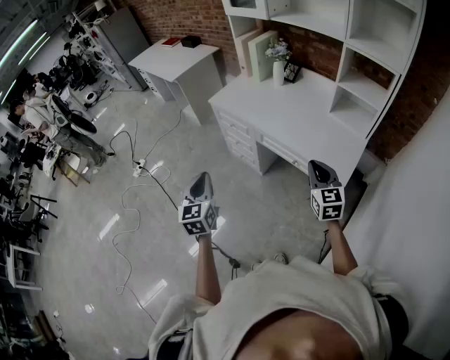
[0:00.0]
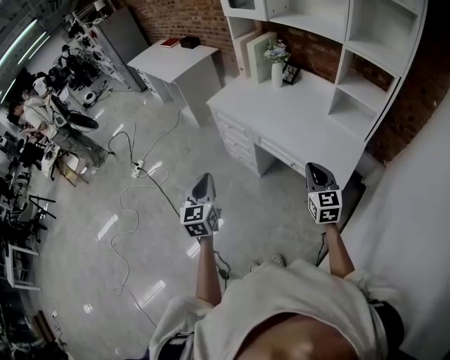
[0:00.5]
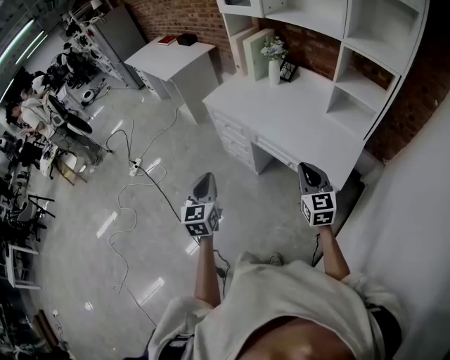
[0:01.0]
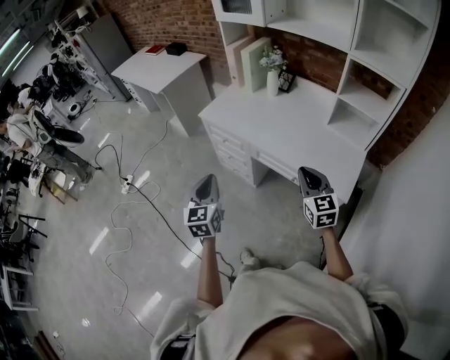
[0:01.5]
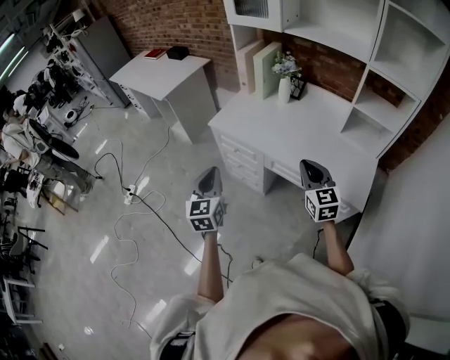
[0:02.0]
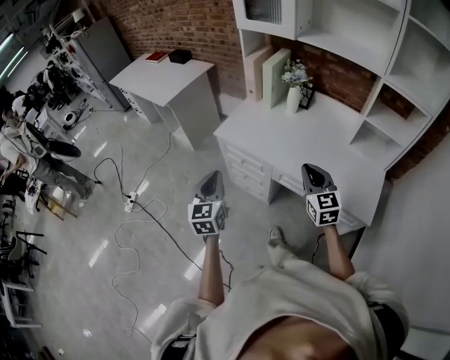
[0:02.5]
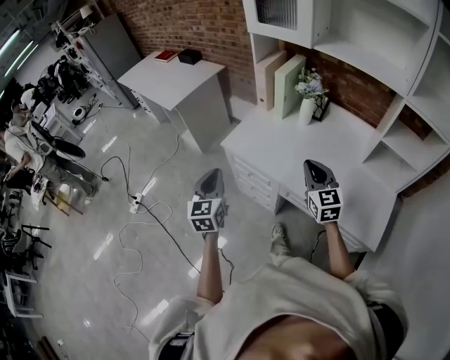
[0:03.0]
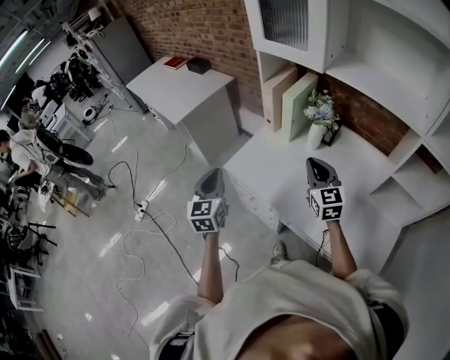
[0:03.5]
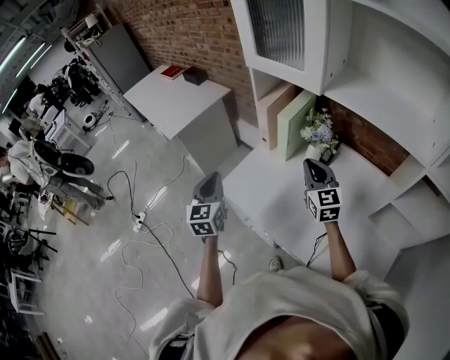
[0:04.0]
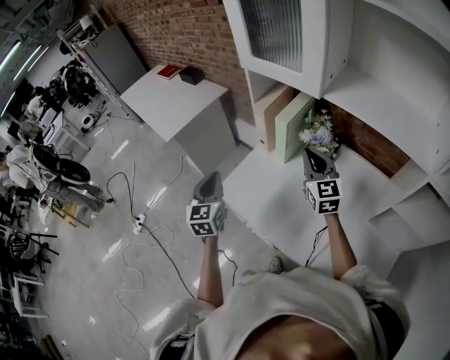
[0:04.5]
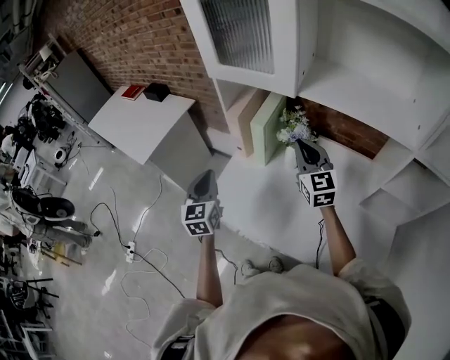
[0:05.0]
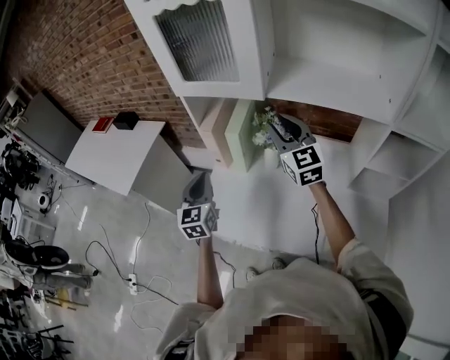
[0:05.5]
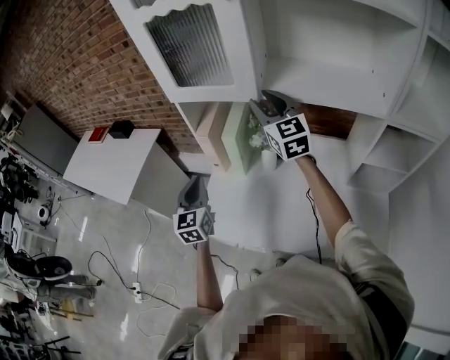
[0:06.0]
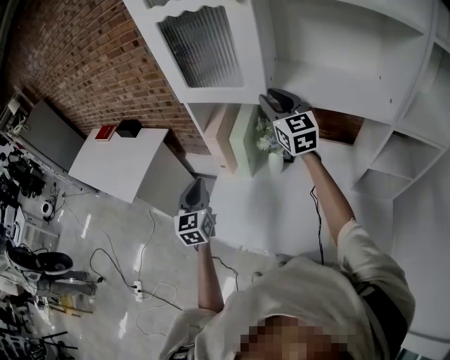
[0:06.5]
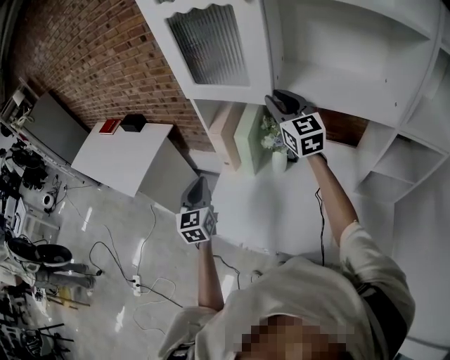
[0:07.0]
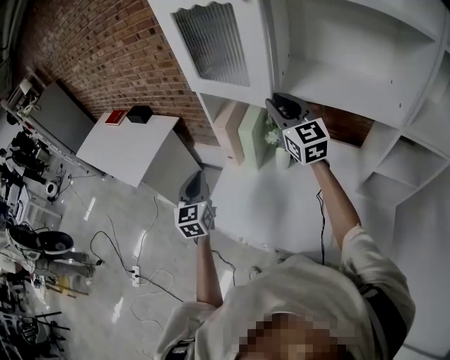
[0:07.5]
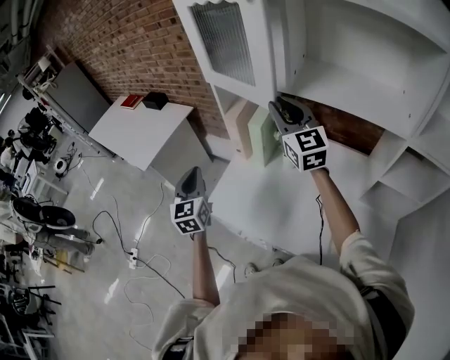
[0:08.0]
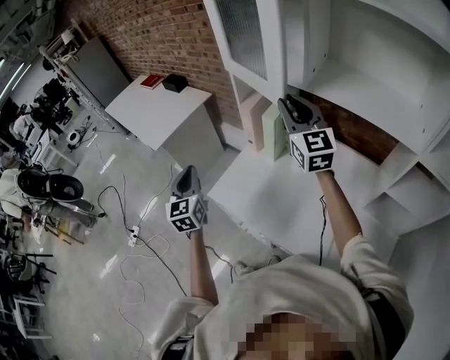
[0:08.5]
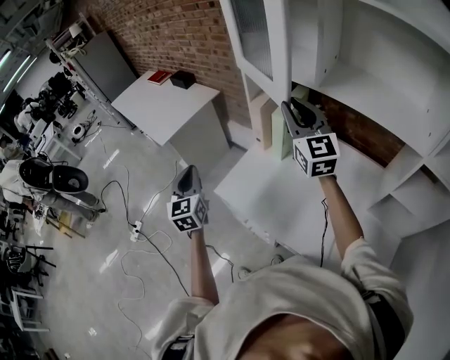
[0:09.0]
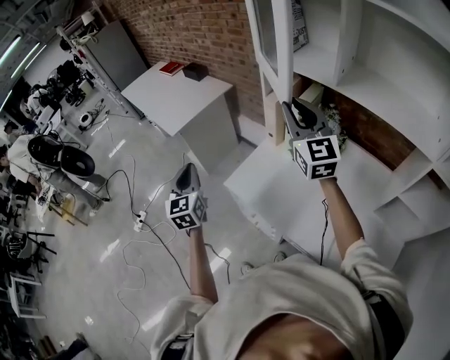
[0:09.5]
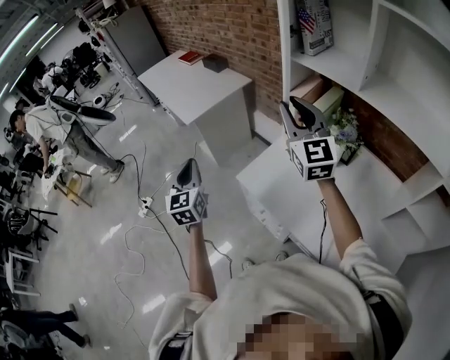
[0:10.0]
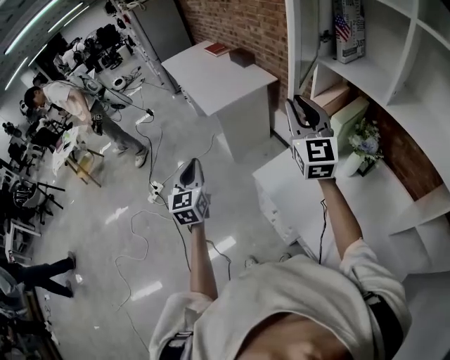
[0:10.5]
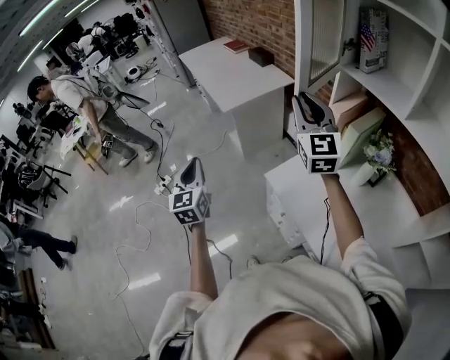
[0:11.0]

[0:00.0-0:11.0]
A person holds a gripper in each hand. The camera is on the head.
0:00.0 to 0:02.0: The left gripper is displaced forward by approximately 20 cm. Meanwhile the right gripper shifts some 20 cm forward and to the left.
0:02.0 to 0:03.5: The grippers both shift forward by about 30 cm.
0:03.5 to 0:05.5: The right gripper is displaced forward and upward by some 20 cm, and opens its fingers; the left gripper travels forward and to the right by about 25 cm, and turns by roughly 20 degrees.
0:05.5 to 0:07.5: The left gripper changes place by approximately 5 cm; the right gripper moves upward, approximately 5 cm.
0:07.5 to 0:09.0: The right gripper is displaced to the left by roughly 5 cm. The left gripper goes roughly 15 cm to the left and backward, and rotates some 20 degrees.
0:09.0 to 0:11.0: Both grippers move to the left, about 20 cm.

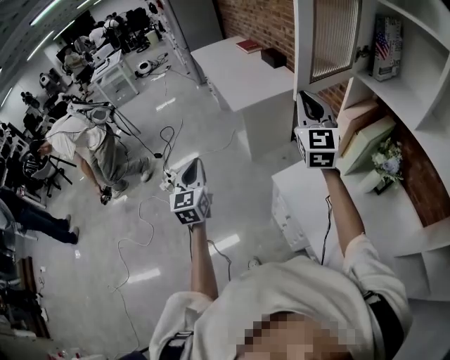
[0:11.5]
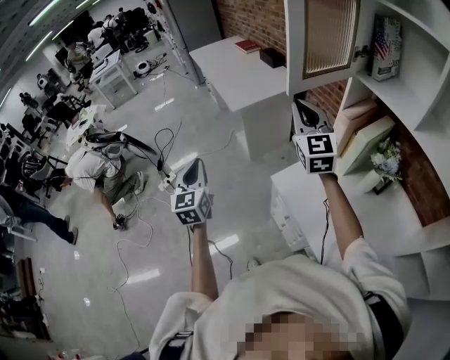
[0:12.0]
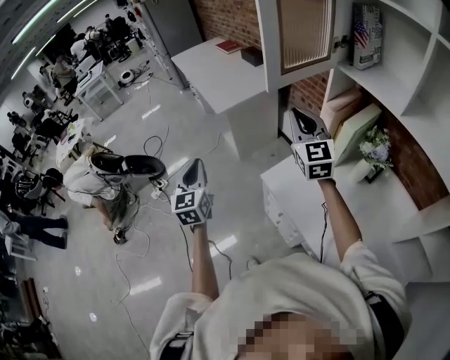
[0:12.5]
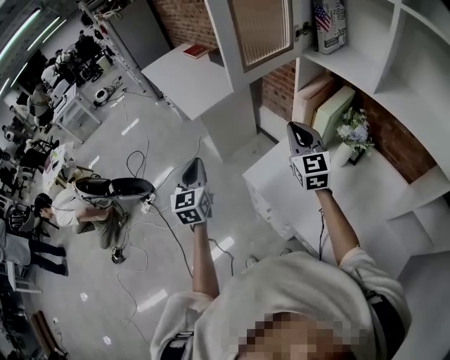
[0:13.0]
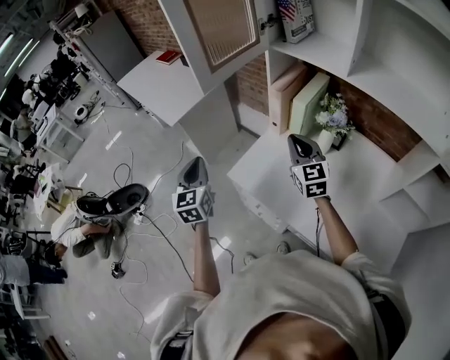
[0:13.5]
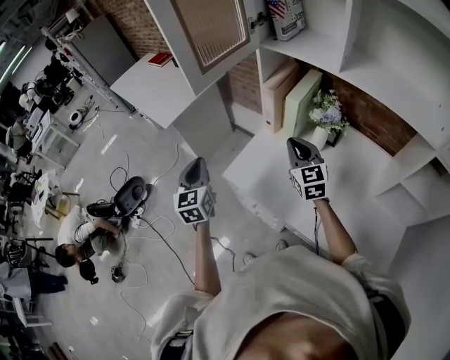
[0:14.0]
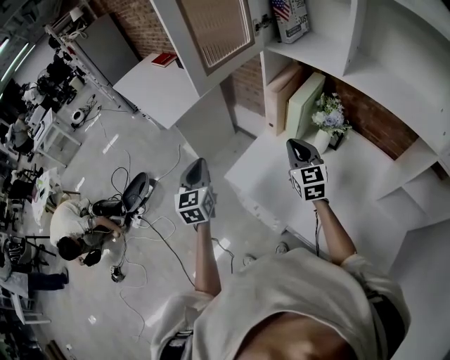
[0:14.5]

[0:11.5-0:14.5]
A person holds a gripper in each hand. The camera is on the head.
0:11.5 to 0:13.0: The right gripper goes some 15 cm downward, to the right and backward; the left gripper goes approximately 10 cm to the right.
0:13.0 to 0:14.5: The right gripper heads to the right and downward, covering roughly 10 cm; the left gripper heads to the right, covering about 10 cm.

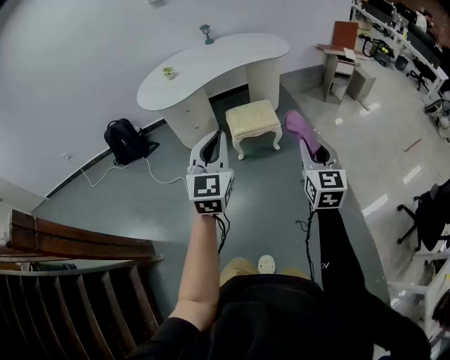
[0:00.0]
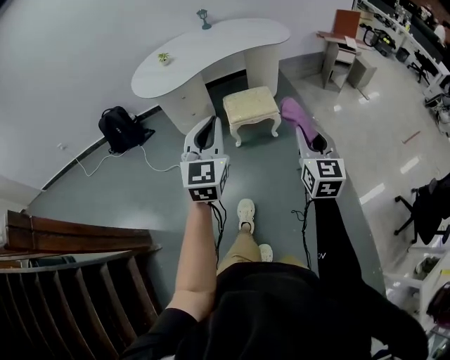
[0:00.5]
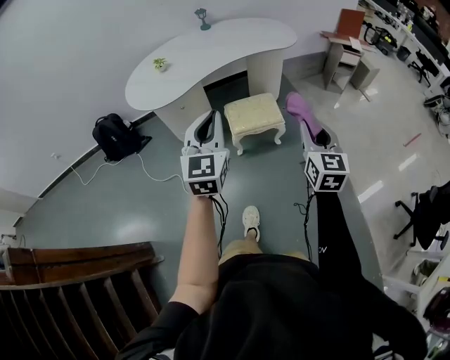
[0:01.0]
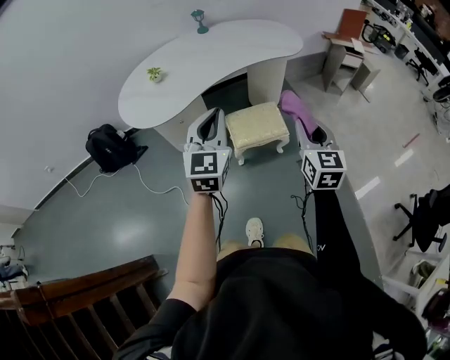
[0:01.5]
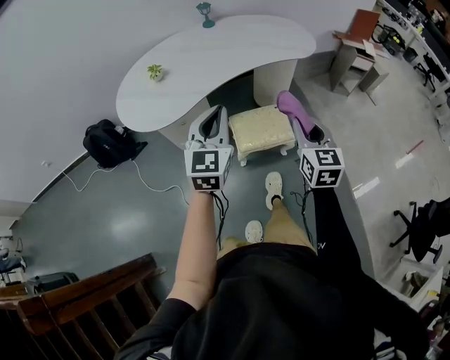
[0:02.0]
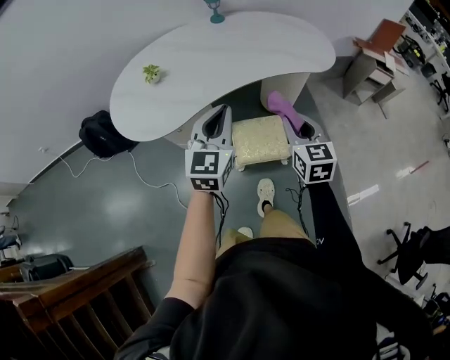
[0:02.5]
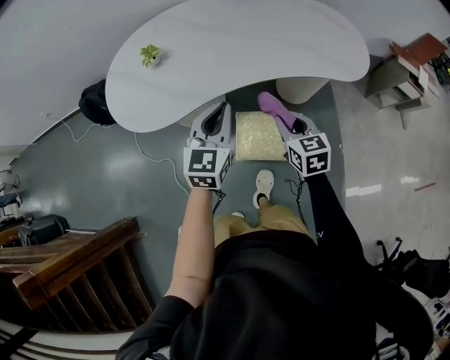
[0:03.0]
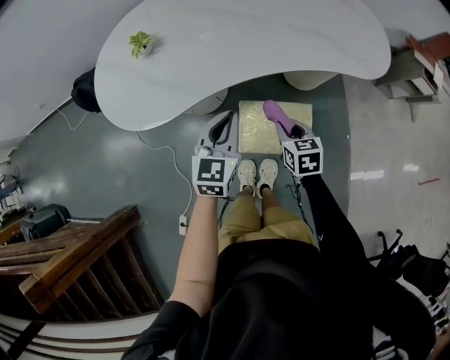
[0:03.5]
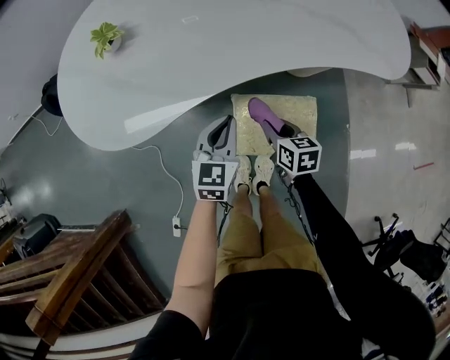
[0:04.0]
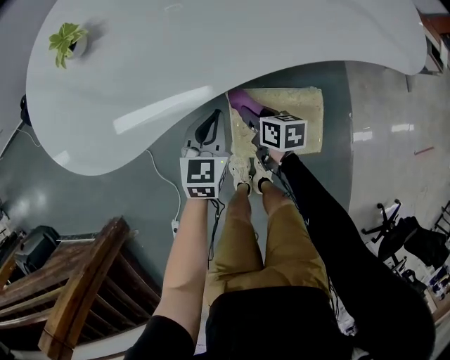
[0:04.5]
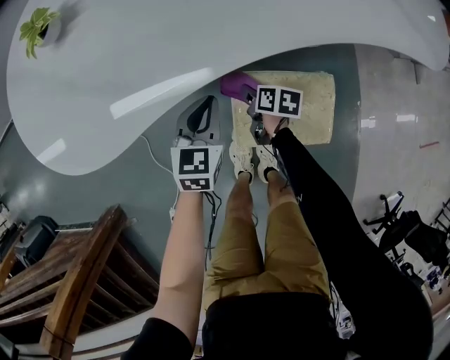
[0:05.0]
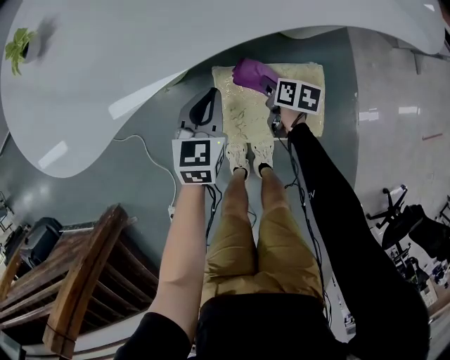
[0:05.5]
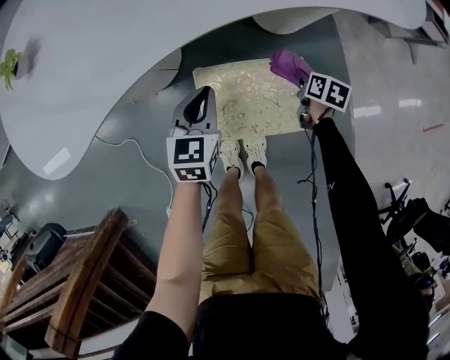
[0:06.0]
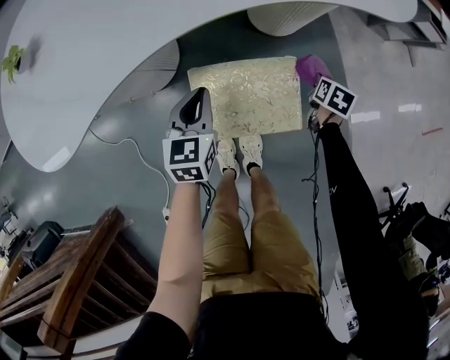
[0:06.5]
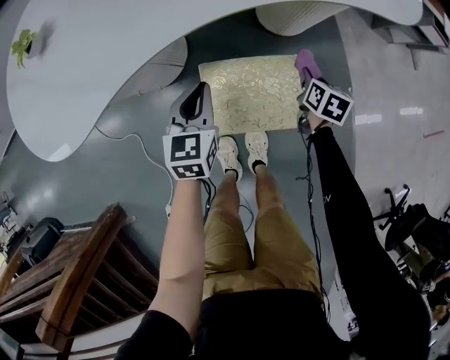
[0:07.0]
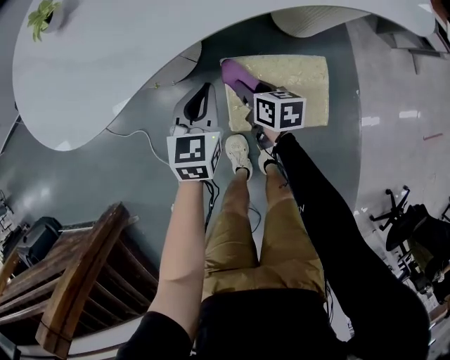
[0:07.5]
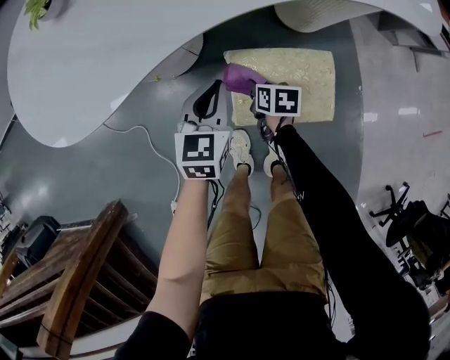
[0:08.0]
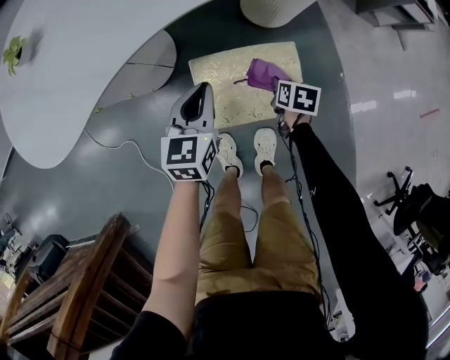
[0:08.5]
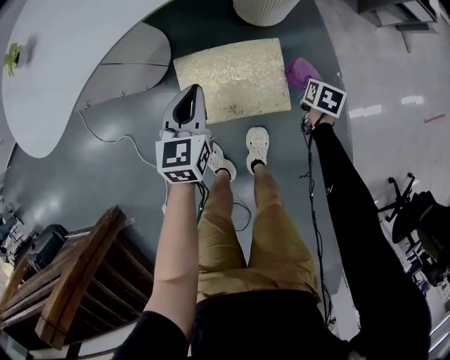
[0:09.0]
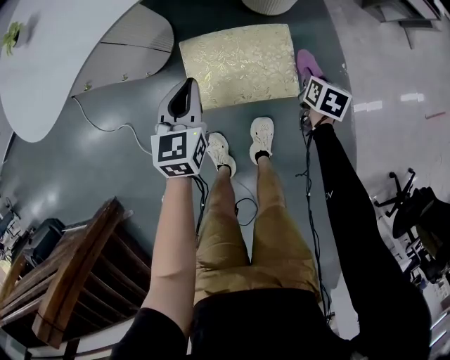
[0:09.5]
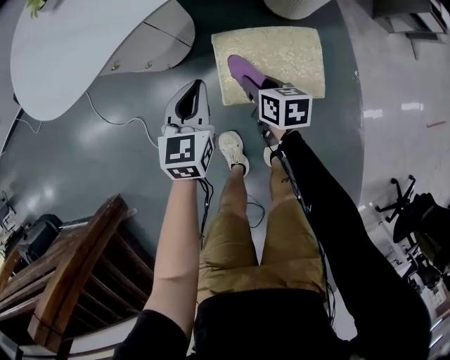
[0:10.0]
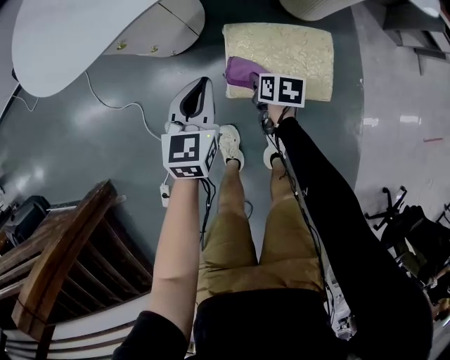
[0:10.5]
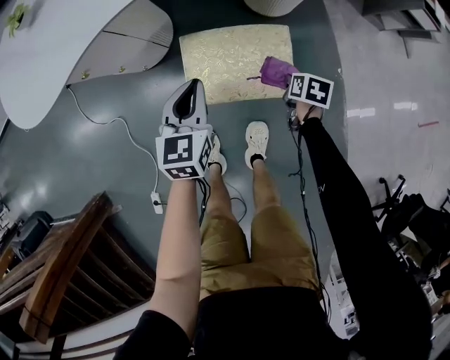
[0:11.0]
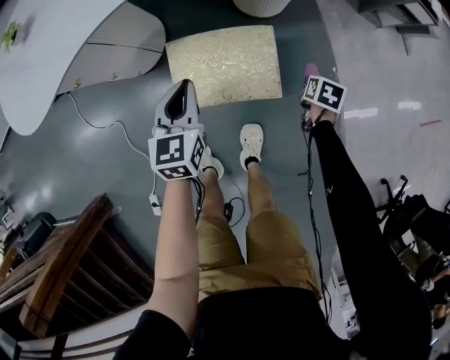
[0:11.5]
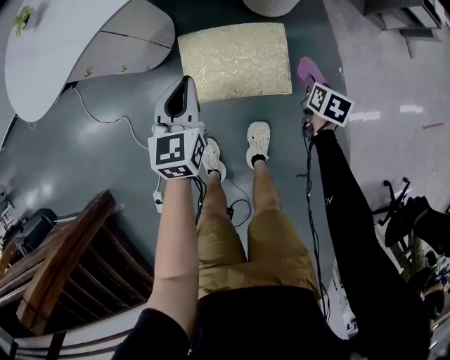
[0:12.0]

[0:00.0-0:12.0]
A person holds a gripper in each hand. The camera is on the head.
0:00.0 to 0:02.0: Both grippers move forward, approximately 35 cm.
0:02.0 to 0:04.0: The grippers both shift downward and forward by roughly 40 cm. The right gripper swivels some 50 degrees; the left gripper changes its angle by some 30 degrees.
0:04.0 to 0:06.0: The left gripper is displaced downward and to the right by some 15 cm, while the right gripper moves to the right and downward, about 30 cm, and changes its angle by approximately 30 degrees.
0:06.0 to 0:08.0: The right gripper moves roughly 10 cm upward and comes back; the left gripper shifts by approximately 10 cm.
0:08.0 to 0:10.0: The right gripper heads upward, covering some 10 cm.
0:10.0 to 0:12.0: The right gripper changes place by some 35 cm, and swivels about 30 degrees; the left gripper shifts by about 10 cm.
